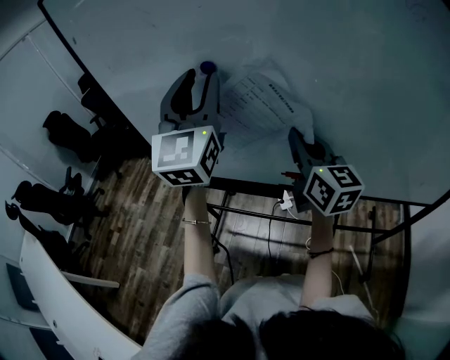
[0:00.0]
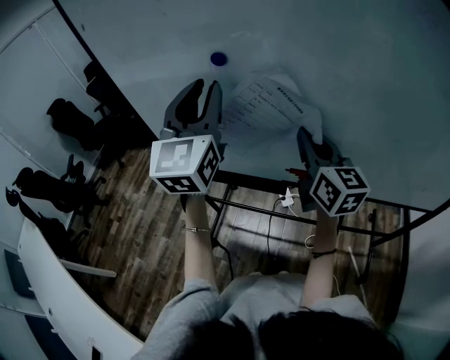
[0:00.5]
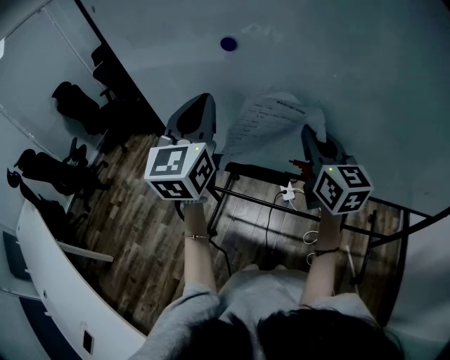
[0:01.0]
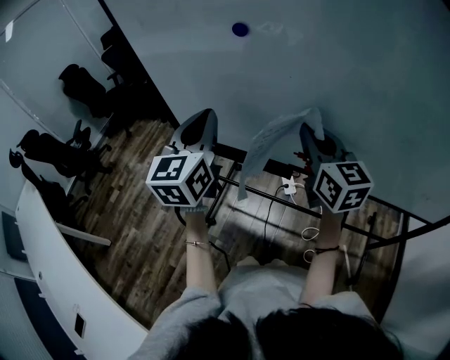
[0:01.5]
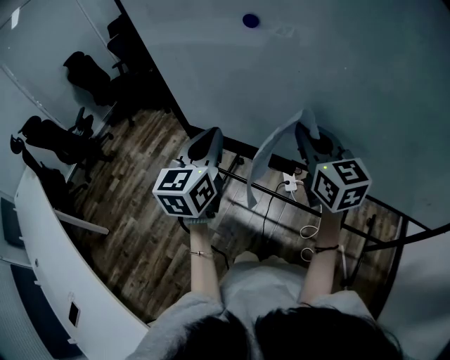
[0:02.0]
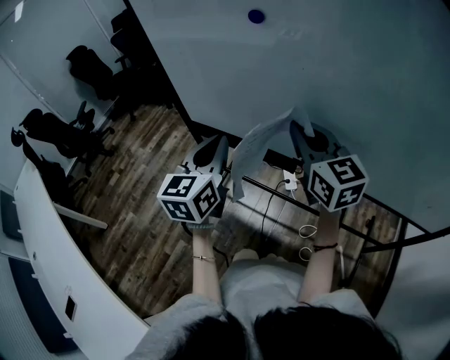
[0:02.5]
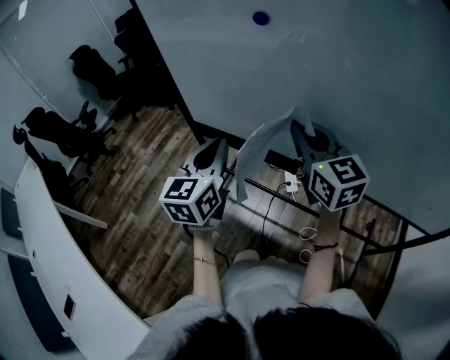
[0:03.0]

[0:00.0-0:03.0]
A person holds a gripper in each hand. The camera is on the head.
0:00.0 to 0:01.5: The left gripper goes about 15 cm downward, to the left and backward, turns by about 20 degrees, and closes up.
0:01.5 to 0:03.0: The right gripper shifts approximately 5 cm to the left; the left gripper goes about 10 cm downward.

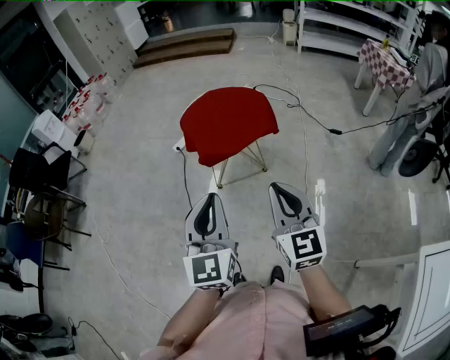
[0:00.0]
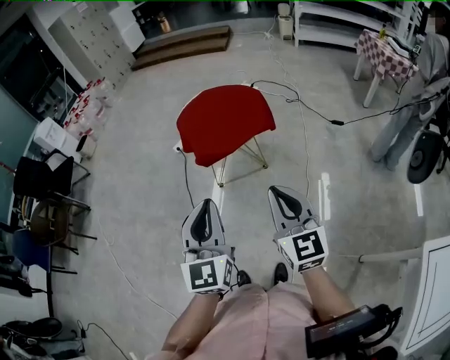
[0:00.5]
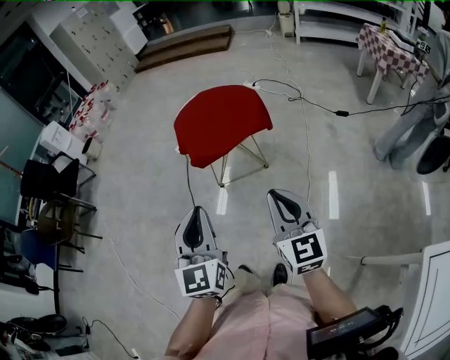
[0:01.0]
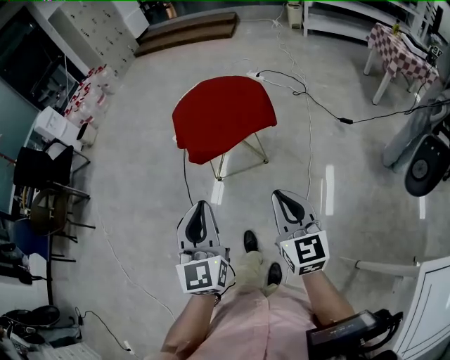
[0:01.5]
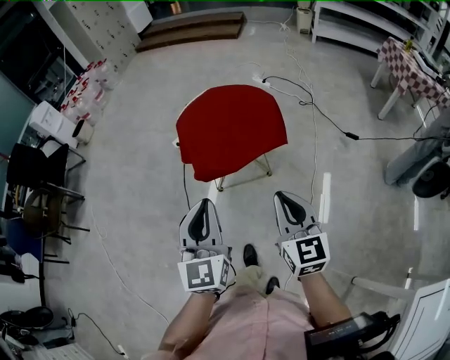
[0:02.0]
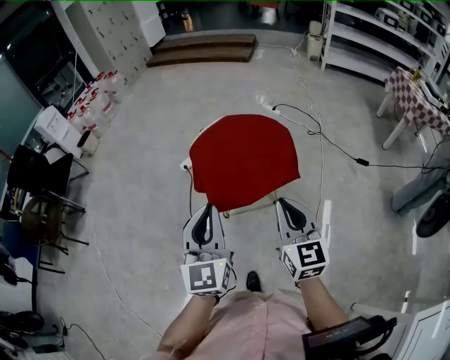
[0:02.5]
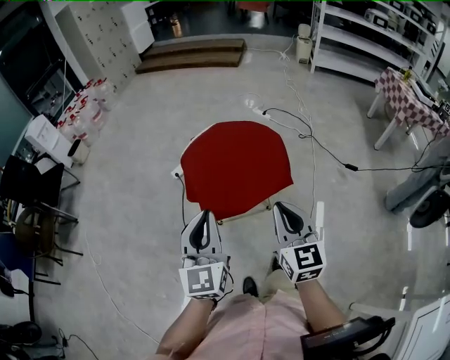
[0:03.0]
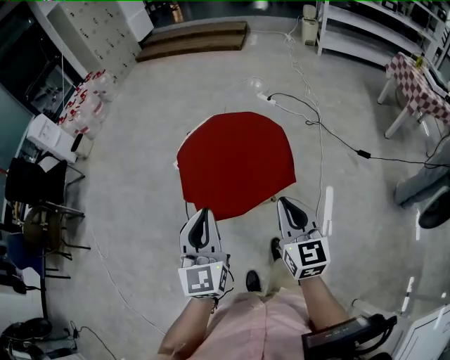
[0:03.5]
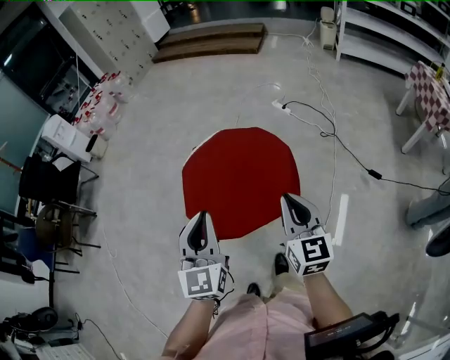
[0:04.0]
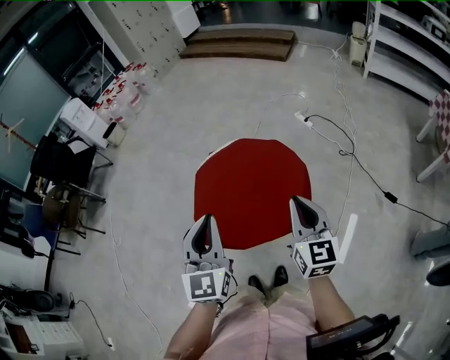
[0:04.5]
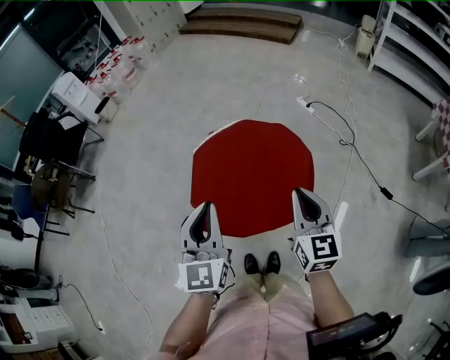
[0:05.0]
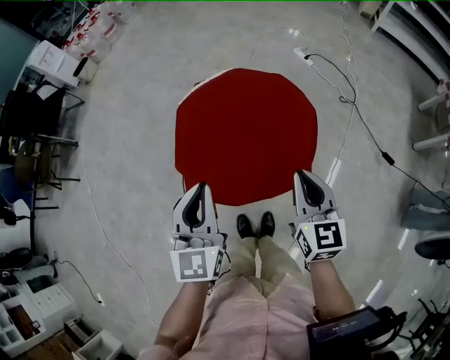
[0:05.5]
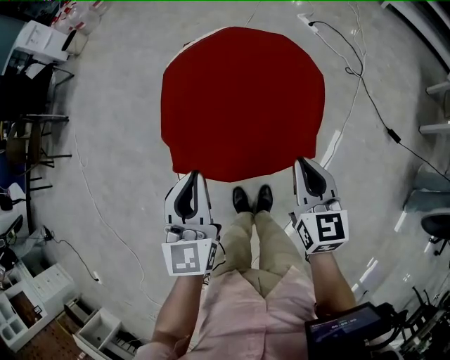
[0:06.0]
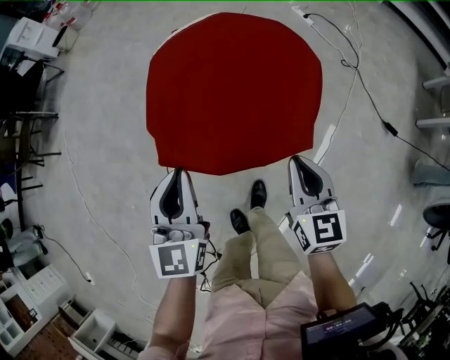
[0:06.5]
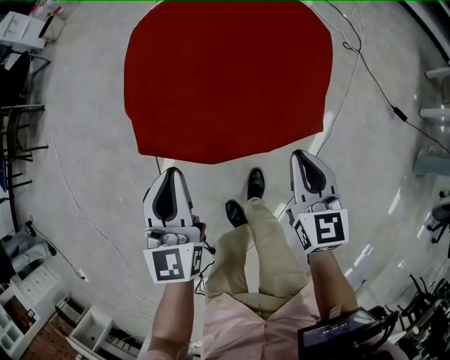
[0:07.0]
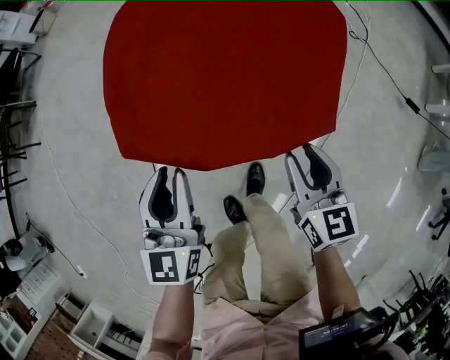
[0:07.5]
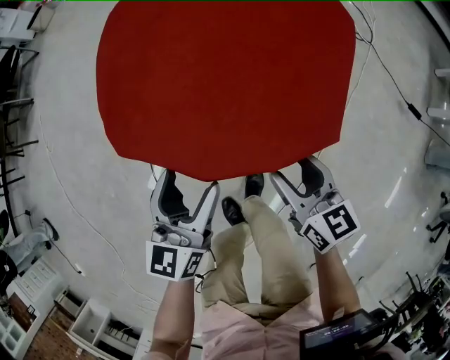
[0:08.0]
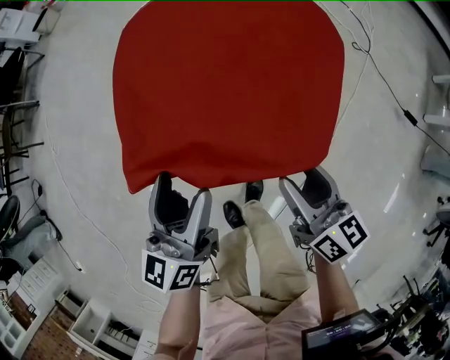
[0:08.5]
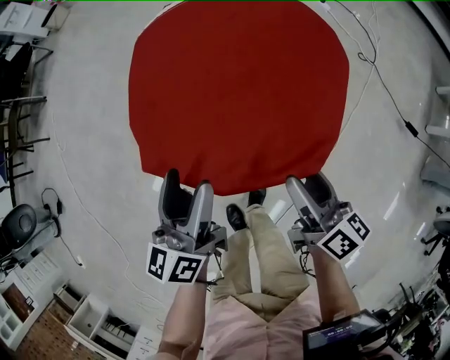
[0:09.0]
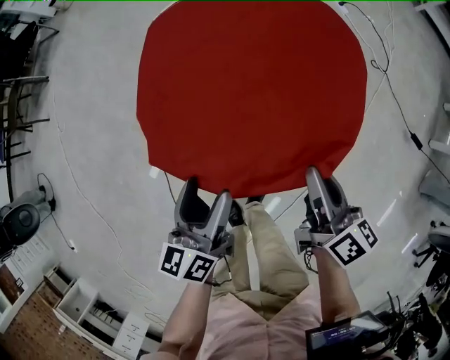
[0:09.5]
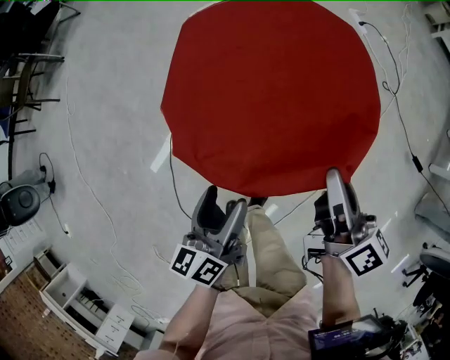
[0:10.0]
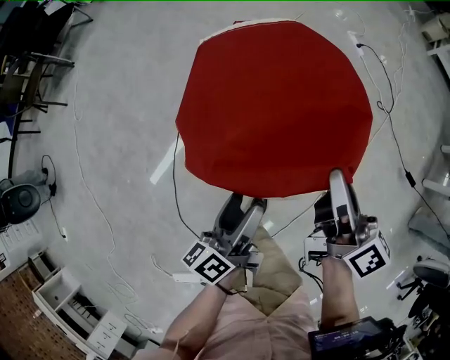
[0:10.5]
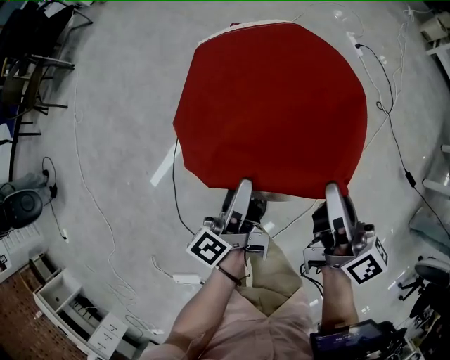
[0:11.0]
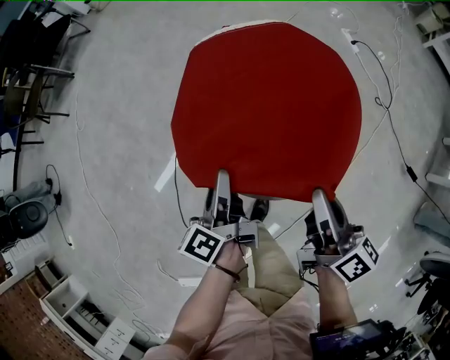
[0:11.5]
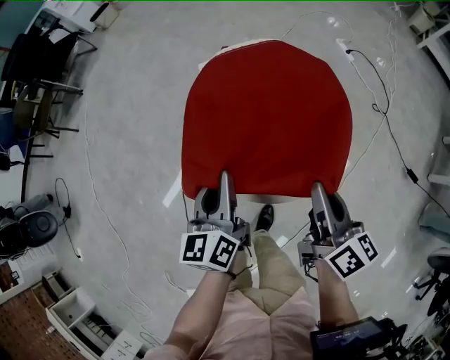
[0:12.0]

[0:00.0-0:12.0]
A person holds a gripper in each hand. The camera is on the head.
0:00.0 to 0:02.0: The left gripper travels forward by approximately 15 cm; the right gripper travels forward and downward by approximately 15 cm.
0:02.0 to 0:04.0: Both grippers move forward, roughly 25 cm.
0:04.0 to 0:06.0: The grippers both shift downward by about 15 cm.
0:06.0 to 0:08.0: Both grippers travel together downward, about 25 cm. The left gripper opens; the right gripper rotates some 20 degrees, and opens.
0:08.0 to 0:10.0: The right gripper moves upward and forward, about 20 cm, swivels approximately 30 degrees, and closes. Meanwhile the left gripper is displaced upward by approximately 5 cm, and turns by about 30 degrees.
0:10.0 to 0:12.0: The left gripper moves upward and forward, roughly 15 cm, and closes. Meanwhile the right gripper travels upward by roughly 5 cm.

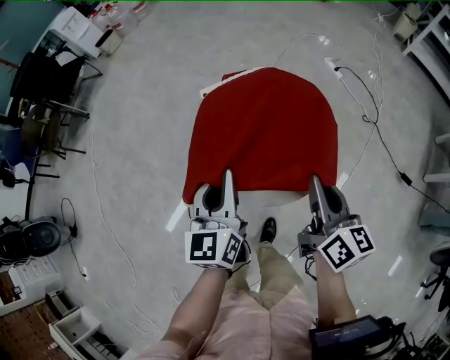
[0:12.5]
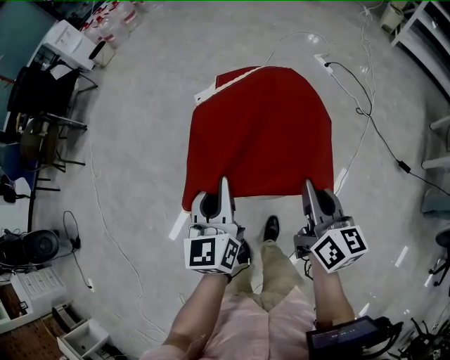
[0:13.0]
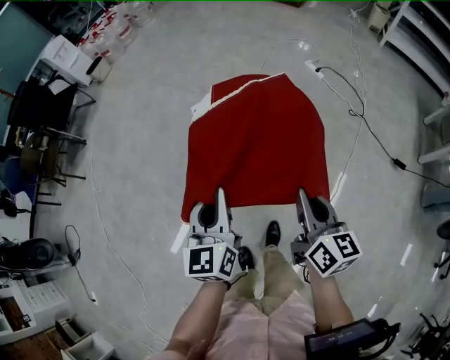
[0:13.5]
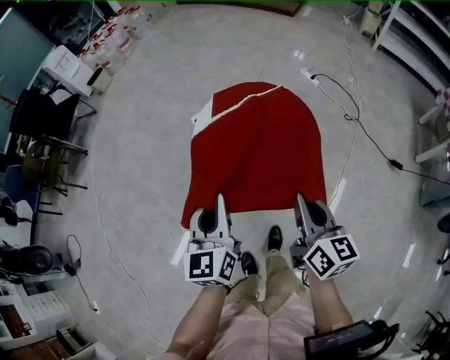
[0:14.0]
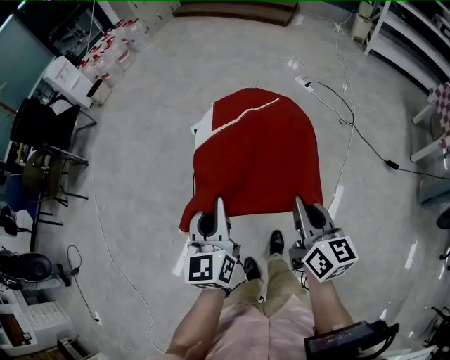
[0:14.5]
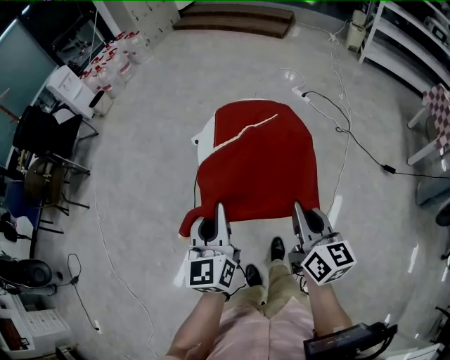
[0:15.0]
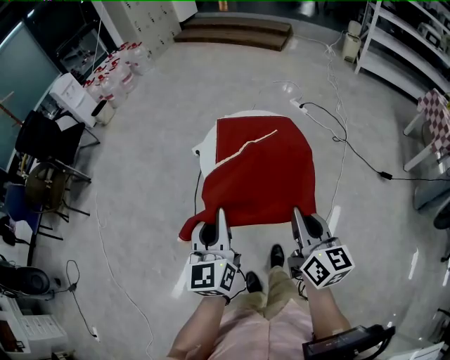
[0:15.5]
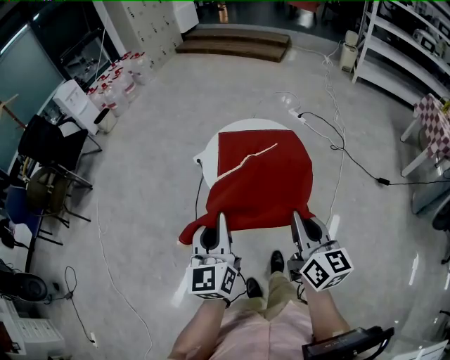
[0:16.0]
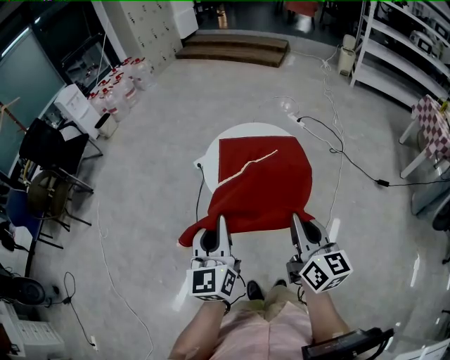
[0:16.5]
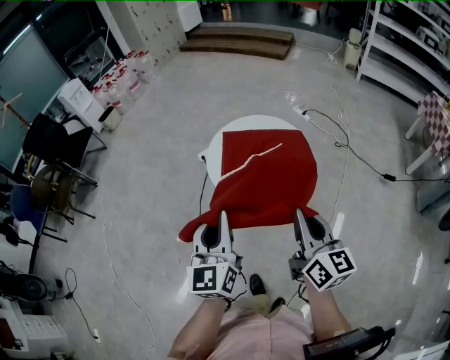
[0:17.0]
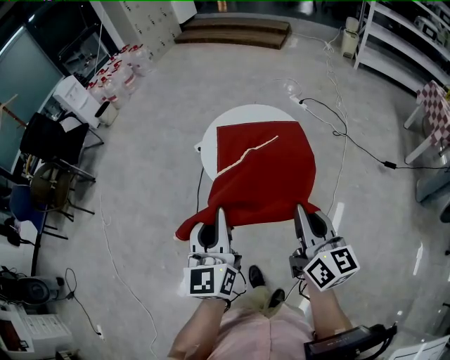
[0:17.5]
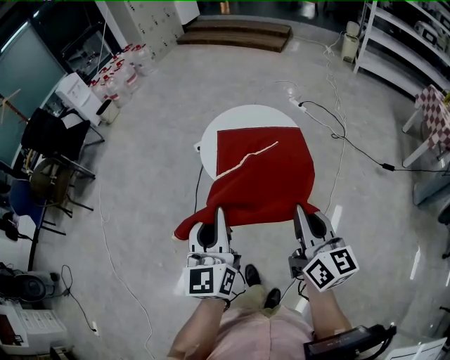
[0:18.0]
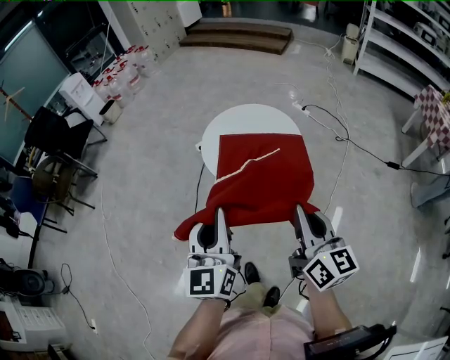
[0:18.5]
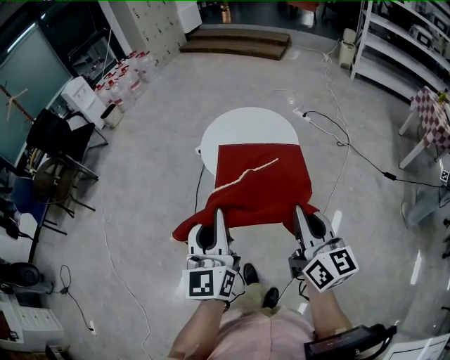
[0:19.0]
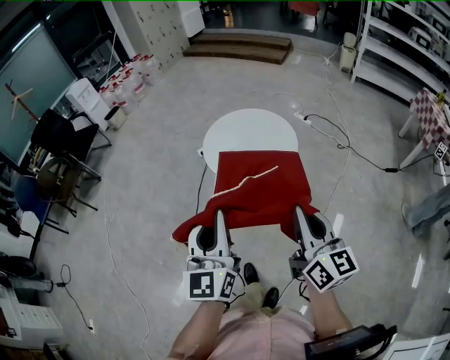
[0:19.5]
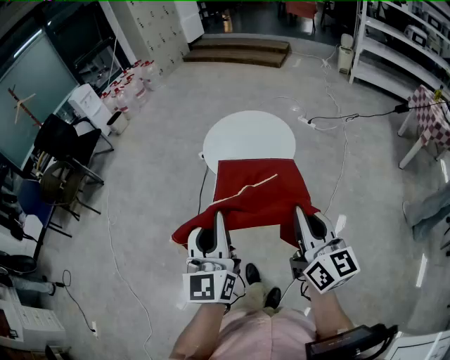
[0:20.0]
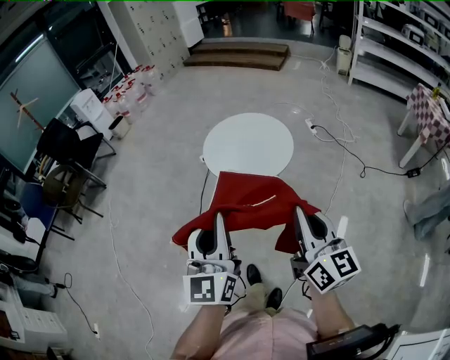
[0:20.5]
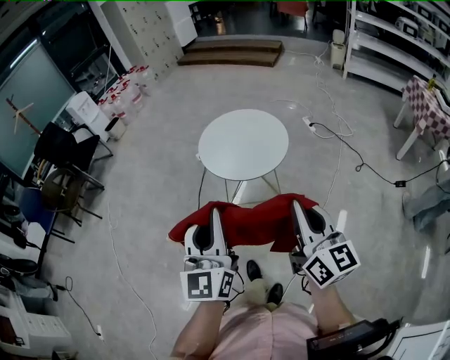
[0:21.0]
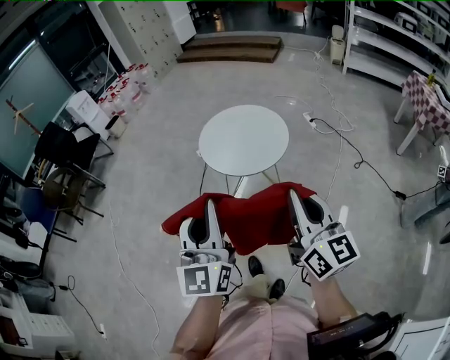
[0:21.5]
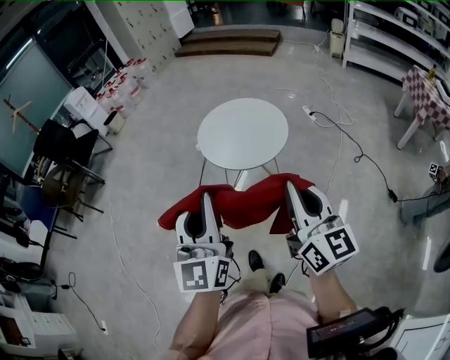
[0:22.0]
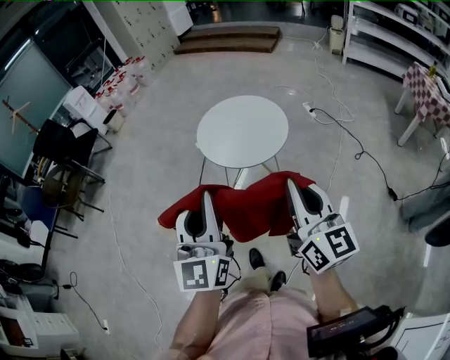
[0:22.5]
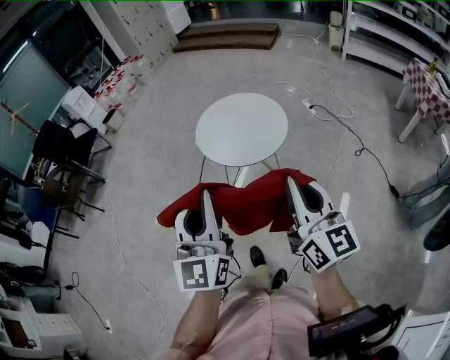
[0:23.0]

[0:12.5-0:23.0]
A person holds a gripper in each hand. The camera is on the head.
0:12.5 to 0:14.5: Both grippers travel together backward, approximately 10 cm.
0:14.5 to 0:16.5: The two grippers go about 15 cm backward and upward.
0:16.5 to 0:19.0: The left gripper moves backward and upward, approximately 15 cm. Meanwhile the right gripper heads backward, covering approximately 10 cm.
0:19.0 to 0:21.0: Both grippers move backward, about 10 cm.
0:21.0 to 0:23.0: The grippers move only a little.

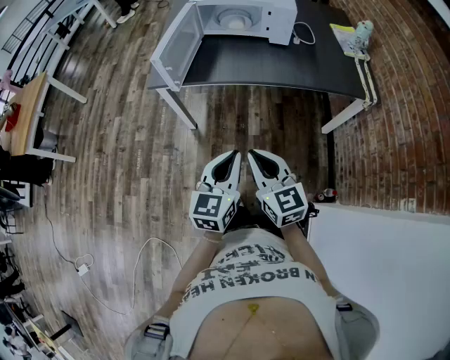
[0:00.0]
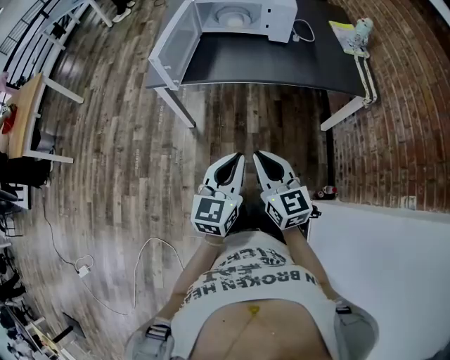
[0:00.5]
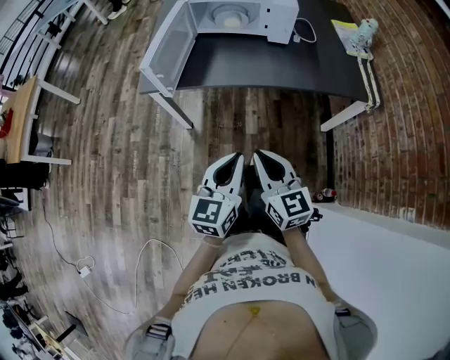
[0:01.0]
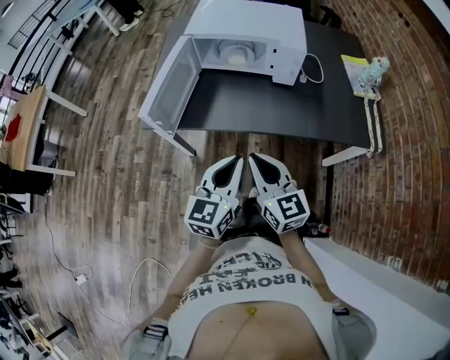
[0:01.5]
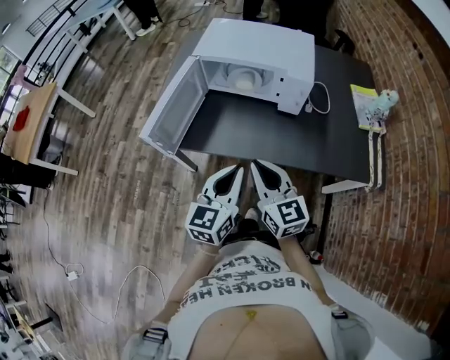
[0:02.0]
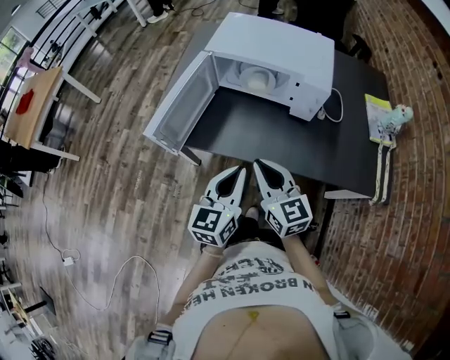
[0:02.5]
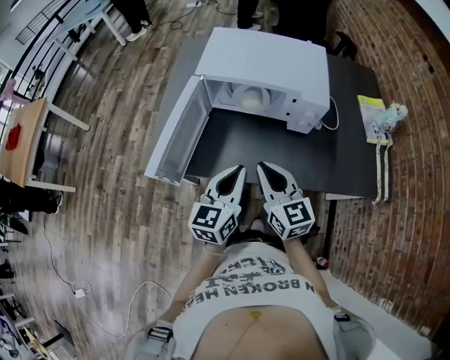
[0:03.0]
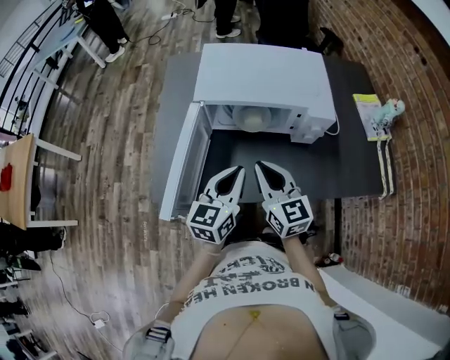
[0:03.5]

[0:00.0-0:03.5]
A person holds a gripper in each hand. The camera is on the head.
0:00.0 to 0:02.0: Both grippers move forward, about 30 cm.
0:02.0 to 0:03.5: The right gripper is displaced forward by roughly 20 cm. The left gripper moves forward and to the left, roughly 25 cm.
